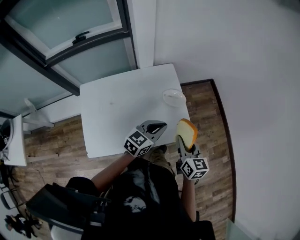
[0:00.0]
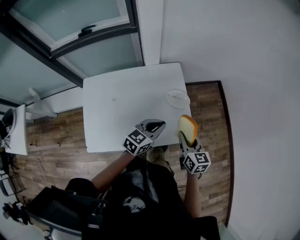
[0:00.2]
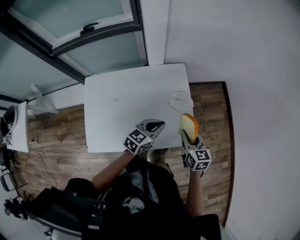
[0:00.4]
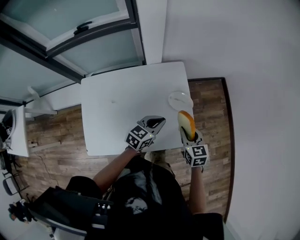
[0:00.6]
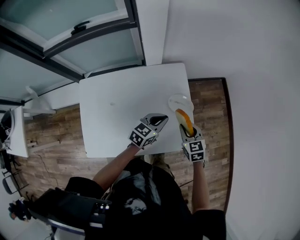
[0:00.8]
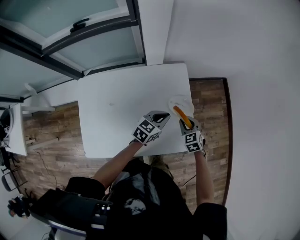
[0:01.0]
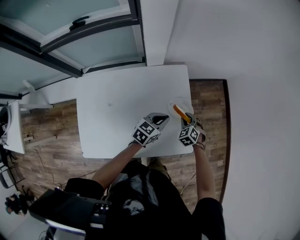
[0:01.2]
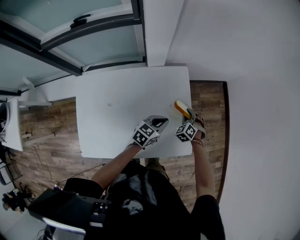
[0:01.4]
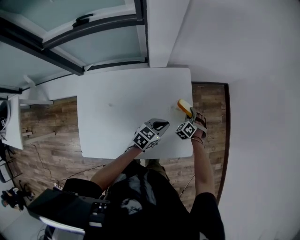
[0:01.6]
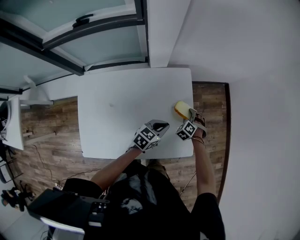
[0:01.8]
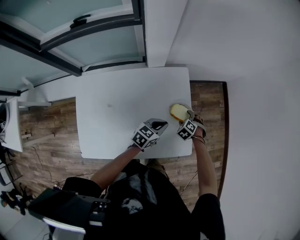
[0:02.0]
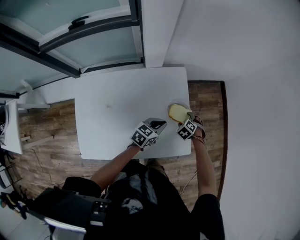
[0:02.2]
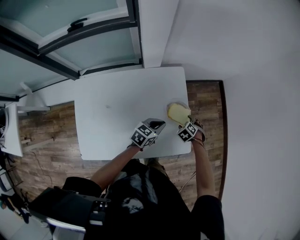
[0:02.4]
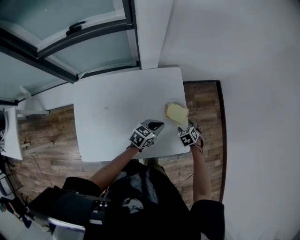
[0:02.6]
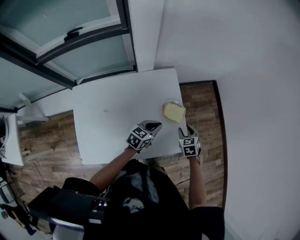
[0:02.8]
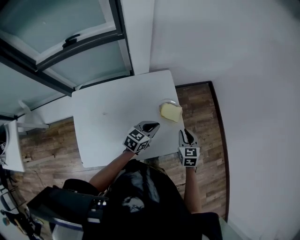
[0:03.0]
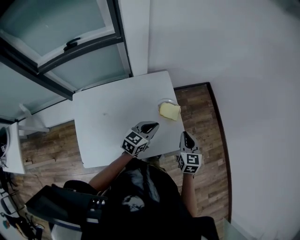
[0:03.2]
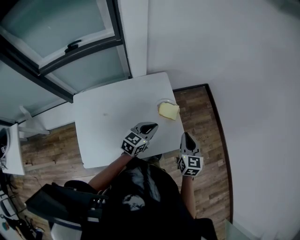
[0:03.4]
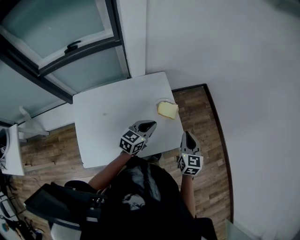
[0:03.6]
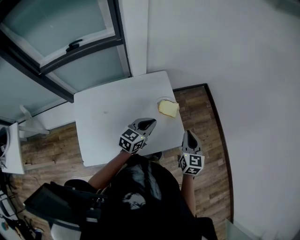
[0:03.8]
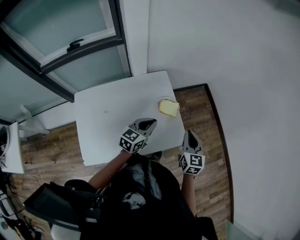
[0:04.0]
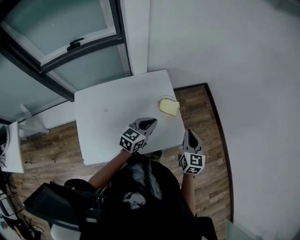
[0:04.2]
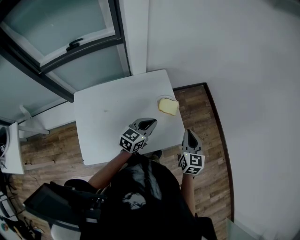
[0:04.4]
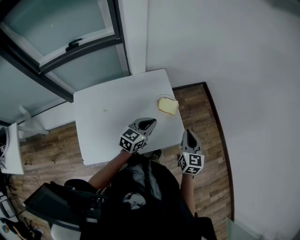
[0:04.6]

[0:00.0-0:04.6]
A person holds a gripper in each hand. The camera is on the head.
0:00.0 to 0:01.6: The left gripper shifts some 20 cm downward and forward; the right gripper heads forward and downward, covering about 40 cm, and rotates around the line of its fingers by roughly 70 degrees, counterclockwise from behind.
0:01.6 to 0:03.0: The right gripper shifts about 15 cm upward, twists roughly 60 degrees clockwise, seen from behind, and opens, then closes once more, while the left gripper heads upward, covering roughly 5 cm.
0:03.0 to 0:04.6: Both grippers travel together upward and backward, some 10 cm. The right gripper swivels roughly 20 degrees.

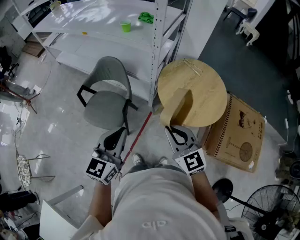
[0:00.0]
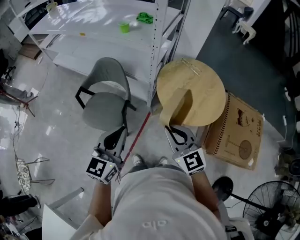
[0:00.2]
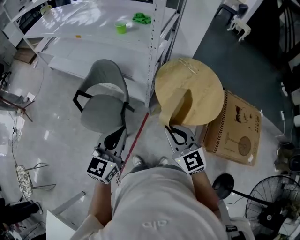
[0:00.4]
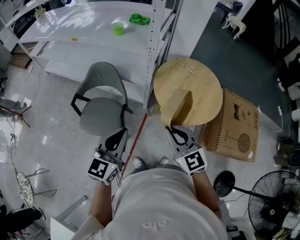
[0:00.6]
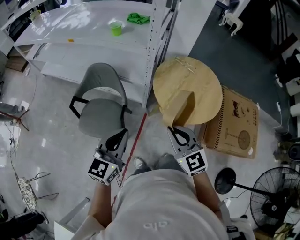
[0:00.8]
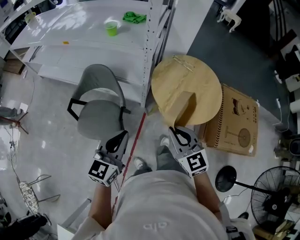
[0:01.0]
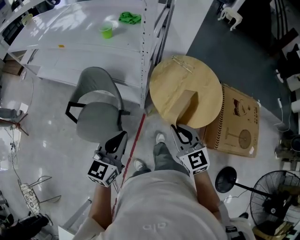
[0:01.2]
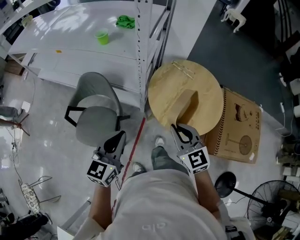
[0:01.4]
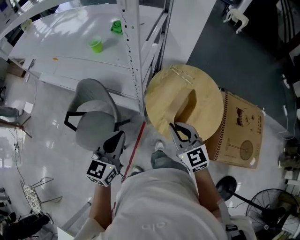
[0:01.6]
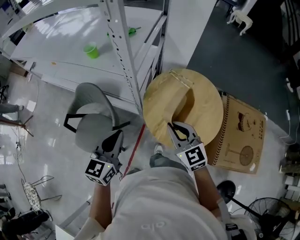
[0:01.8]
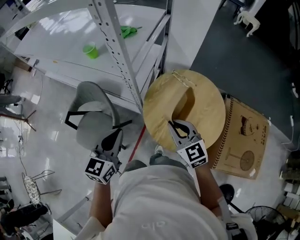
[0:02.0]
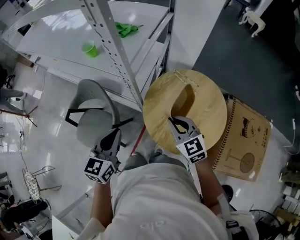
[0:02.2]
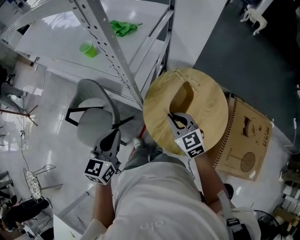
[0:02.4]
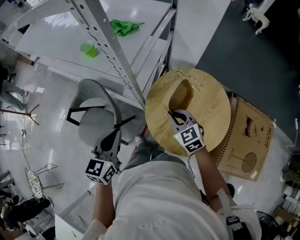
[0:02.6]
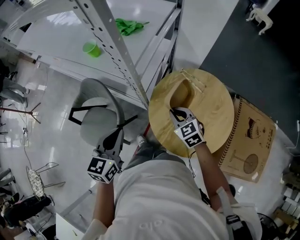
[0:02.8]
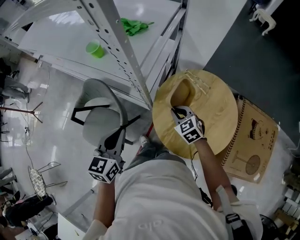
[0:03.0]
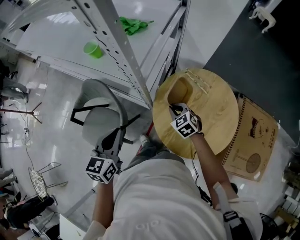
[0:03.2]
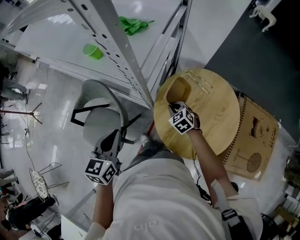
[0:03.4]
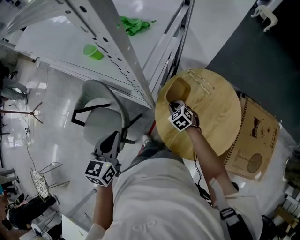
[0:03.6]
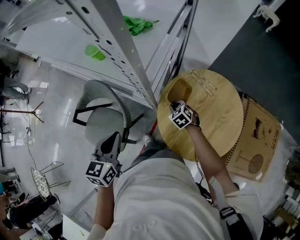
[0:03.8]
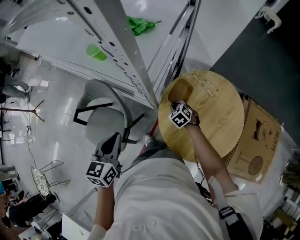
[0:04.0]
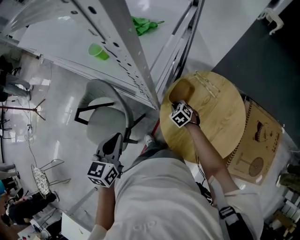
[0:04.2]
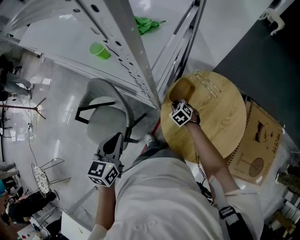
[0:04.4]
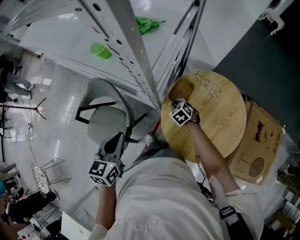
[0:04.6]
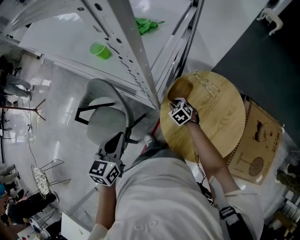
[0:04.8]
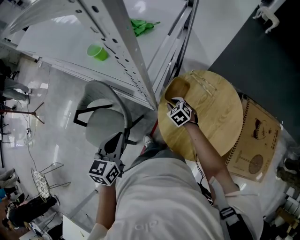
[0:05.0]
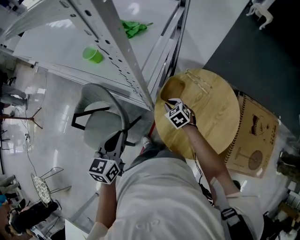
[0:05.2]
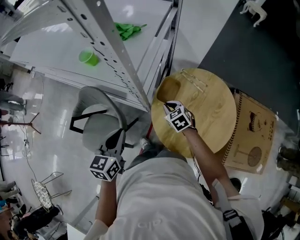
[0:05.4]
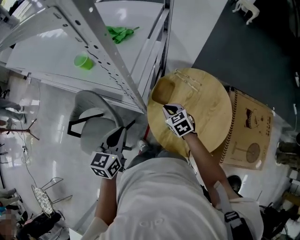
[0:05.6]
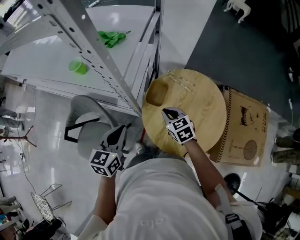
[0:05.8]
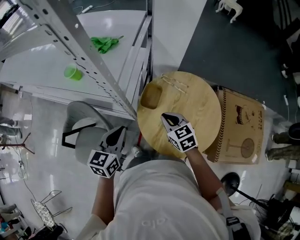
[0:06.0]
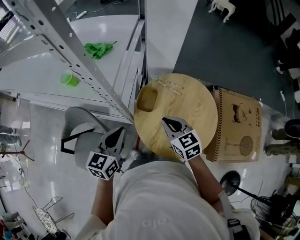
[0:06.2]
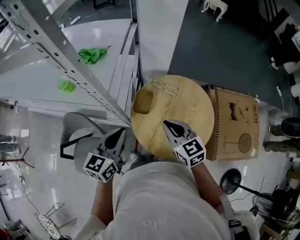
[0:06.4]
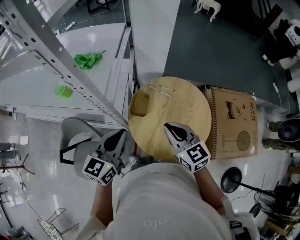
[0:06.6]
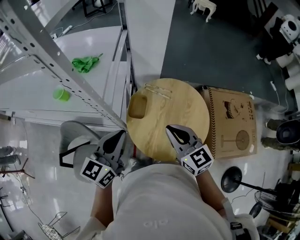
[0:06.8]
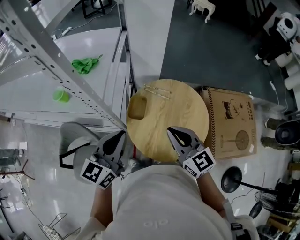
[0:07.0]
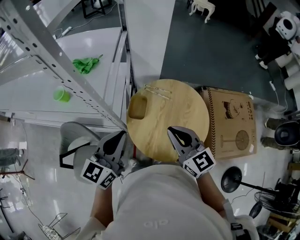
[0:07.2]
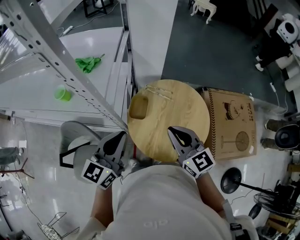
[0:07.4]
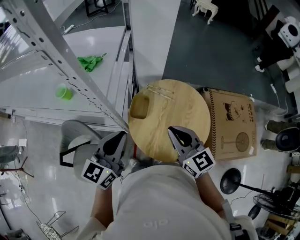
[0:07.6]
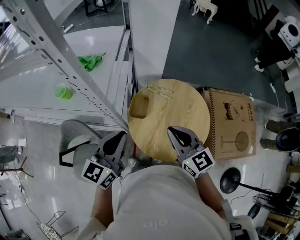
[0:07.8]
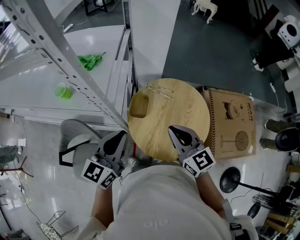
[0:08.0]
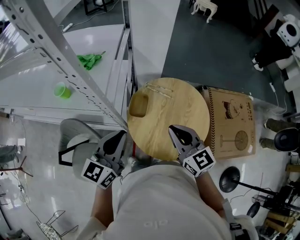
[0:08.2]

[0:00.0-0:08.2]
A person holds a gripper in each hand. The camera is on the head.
0:00.0 to 0:01.6: The two grippers go roughly 20 cm forward.
0:01.6 to 0:03.2: The right gripper shifts about 30 cm forward and downward, and swivels some 30 degrees; the left gripper is displaced forward by roughly 10 cm.
0:03.2 to 0:05.0: The right gripper goes approximately 10 cm downward and forward.
0:05.0 to 0:06.6: The left gripper moves to the right and upward, some 15 cm, and swivels about 30 degrees. The right gripper goes about 30 cm upward and backward, and angles its fingers upward, by about 40 degrees.
0:06.6 to 0:08.2: There are only small adjustments of the grippers.

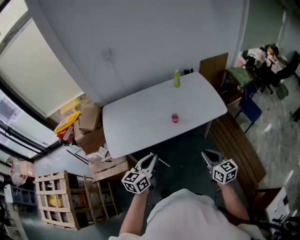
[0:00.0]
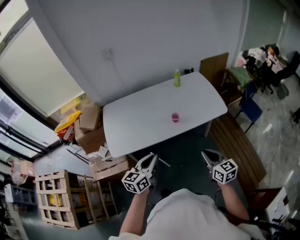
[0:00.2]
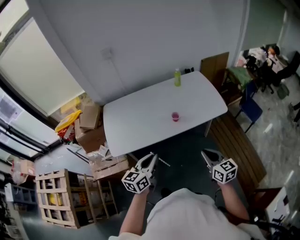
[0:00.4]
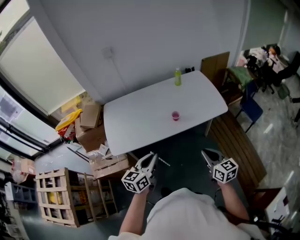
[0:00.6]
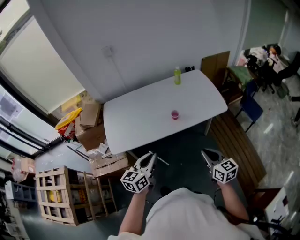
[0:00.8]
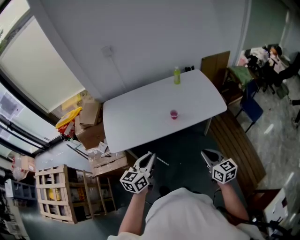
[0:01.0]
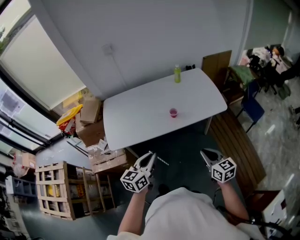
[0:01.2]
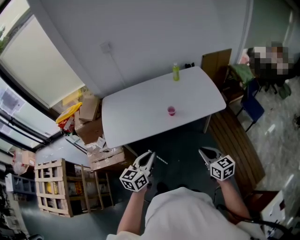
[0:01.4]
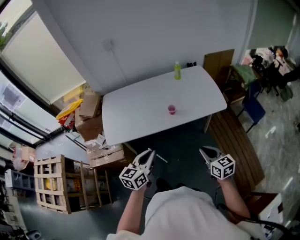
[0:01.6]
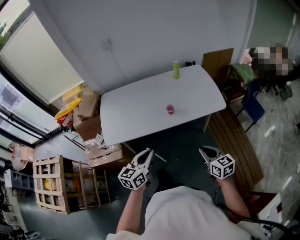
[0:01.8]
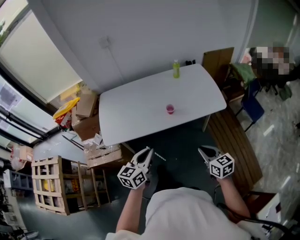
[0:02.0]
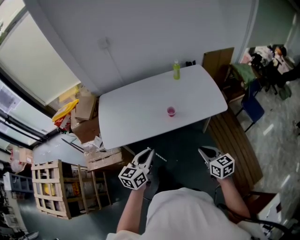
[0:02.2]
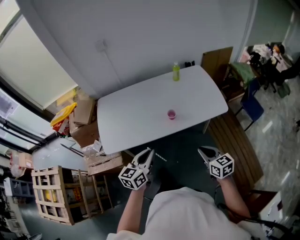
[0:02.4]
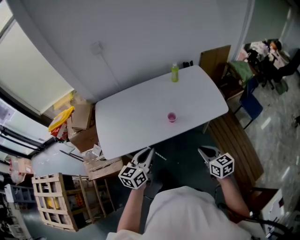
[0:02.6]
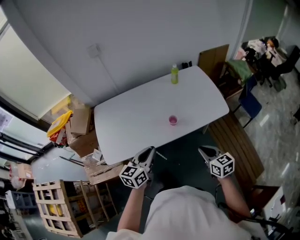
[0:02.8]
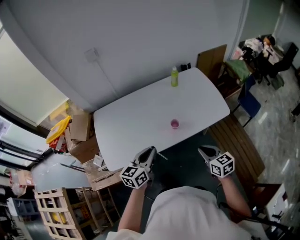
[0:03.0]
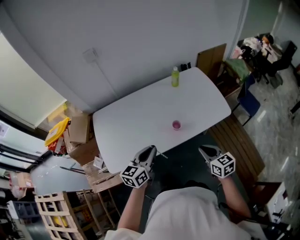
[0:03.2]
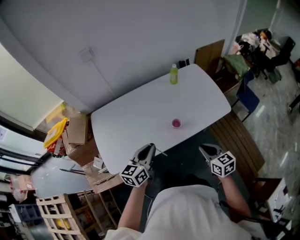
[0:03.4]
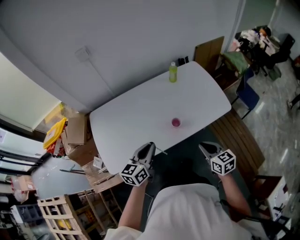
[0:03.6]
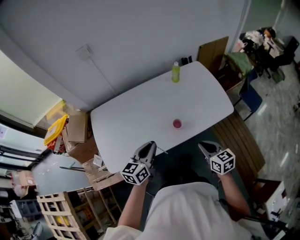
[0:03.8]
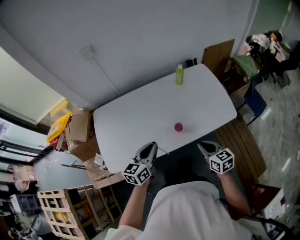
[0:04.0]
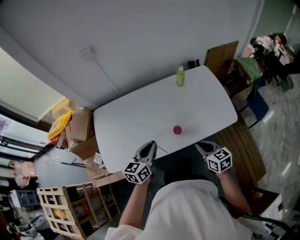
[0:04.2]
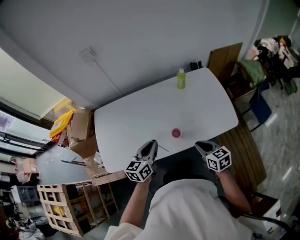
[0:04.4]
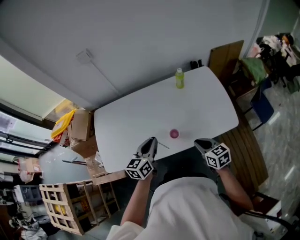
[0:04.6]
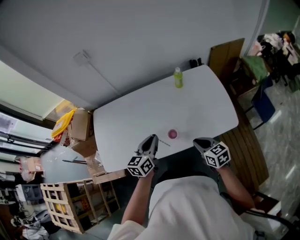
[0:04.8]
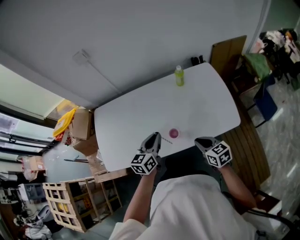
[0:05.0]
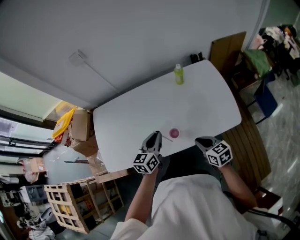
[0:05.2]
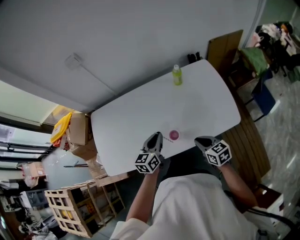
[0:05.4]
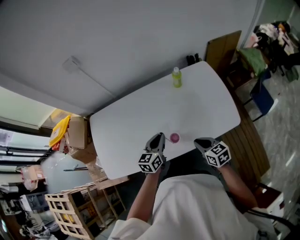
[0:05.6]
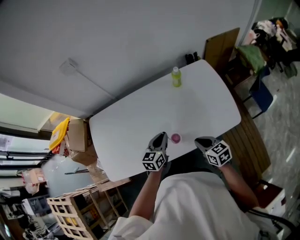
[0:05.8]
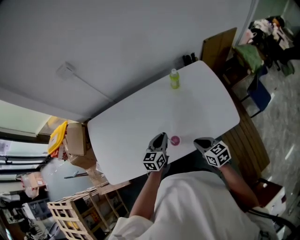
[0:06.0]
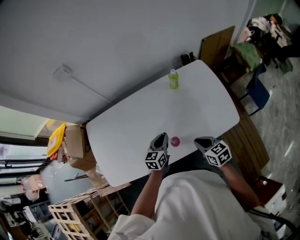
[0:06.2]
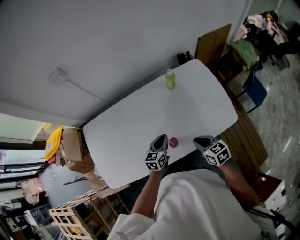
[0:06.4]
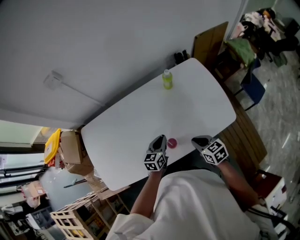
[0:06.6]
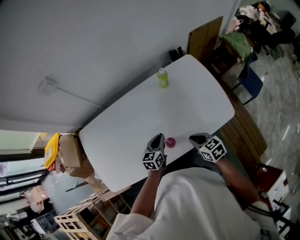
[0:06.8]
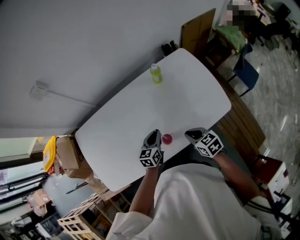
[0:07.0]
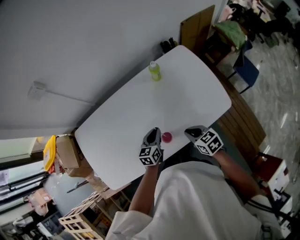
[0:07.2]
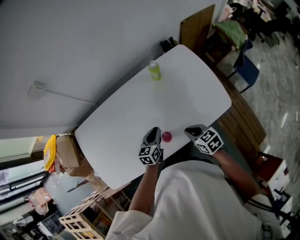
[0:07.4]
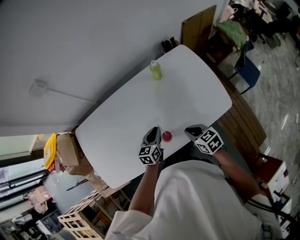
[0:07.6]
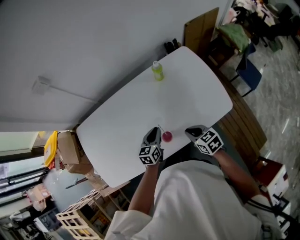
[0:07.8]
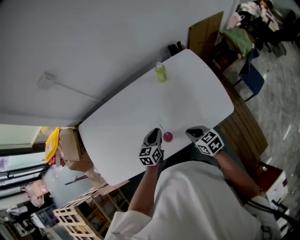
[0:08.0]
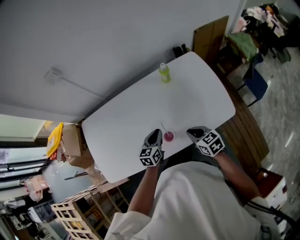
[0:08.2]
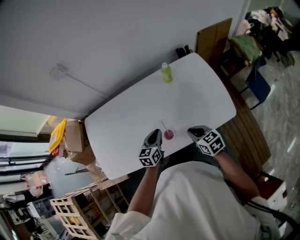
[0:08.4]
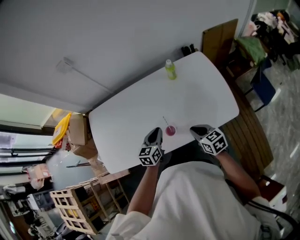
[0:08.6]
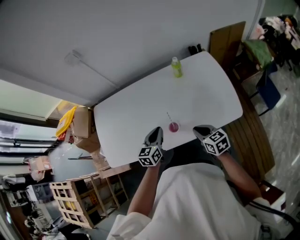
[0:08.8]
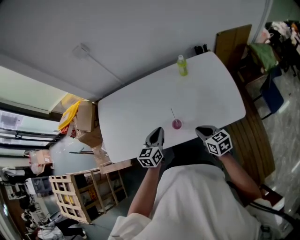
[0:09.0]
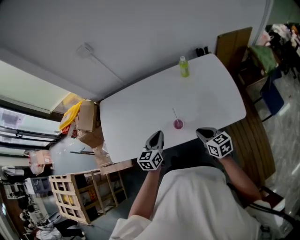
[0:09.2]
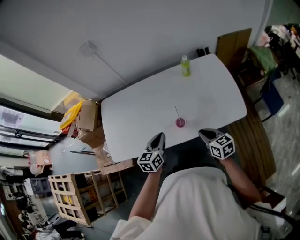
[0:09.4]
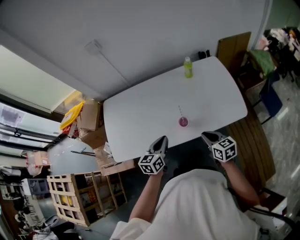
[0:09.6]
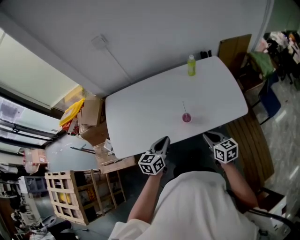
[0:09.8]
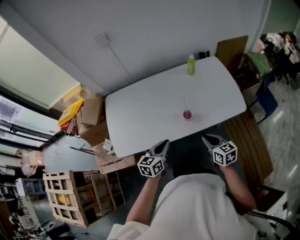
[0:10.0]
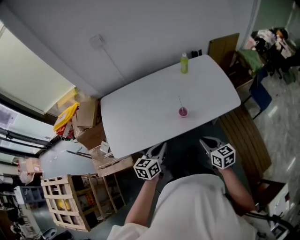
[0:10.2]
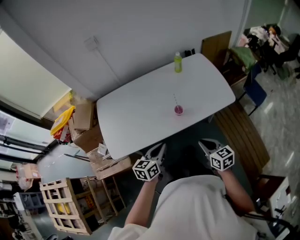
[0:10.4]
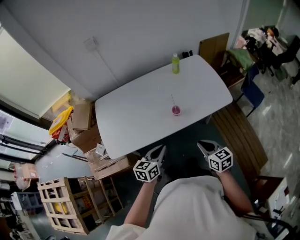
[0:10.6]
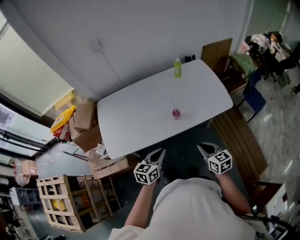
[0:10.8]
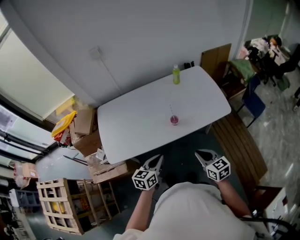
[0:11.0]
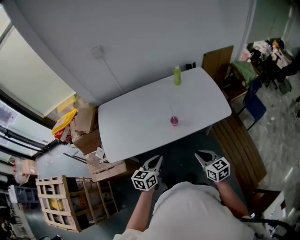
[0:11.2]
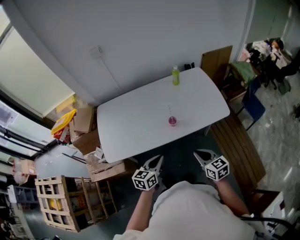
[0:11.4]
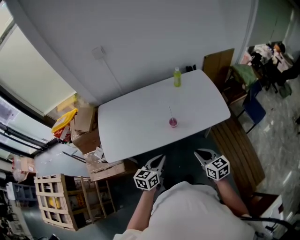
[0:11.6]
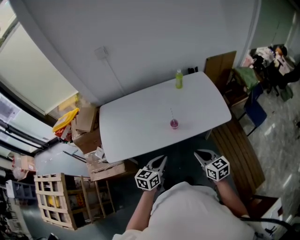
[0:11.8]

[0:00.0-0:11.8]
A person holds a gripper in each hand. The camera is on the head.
0:00.0 to 0:01.4: The left gripper shifts by about 5 cm.
0:01.4 to 0:03.0: The two grippers go approximately 15 cm forward.
0:03.0 to 0:04.4: Both grippers travel together forward, roughly 10 cm.
0:04.4 to 0:06.0: The right gripper heads forward, covering approximately 5 cm; the left gripper travels downward, forward and to the right by some 15 cm.
0:06.0 to 0:07.4: The left gripper is displaced downward by approximately 5 cm.
0:07.4 to 0:08.8: The right gripper moves approximately 5 cm, while the left gripper goes some 10 cm upward and backward.
0:08.8 to 0:10.4: The two grippers go about 20 cm backward and to the left.
0:10.4 to 0:11.8: The left gripper goes roughly 5 cm to the right.
